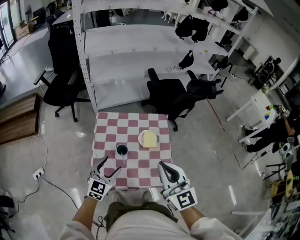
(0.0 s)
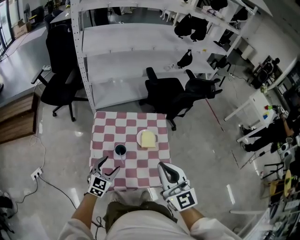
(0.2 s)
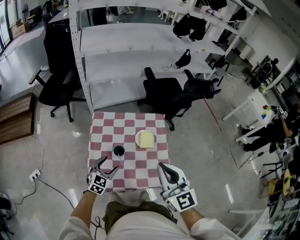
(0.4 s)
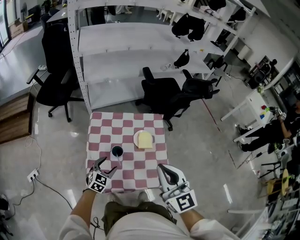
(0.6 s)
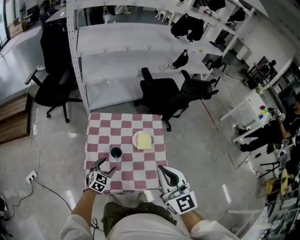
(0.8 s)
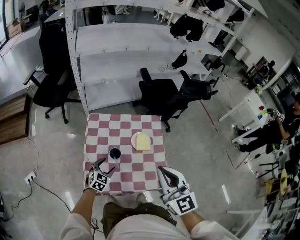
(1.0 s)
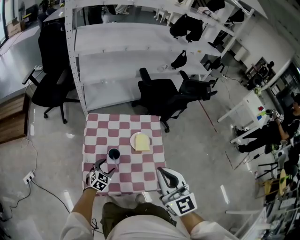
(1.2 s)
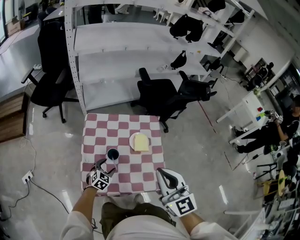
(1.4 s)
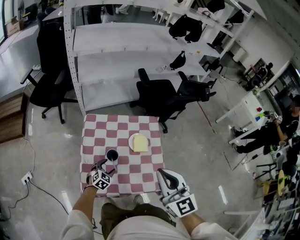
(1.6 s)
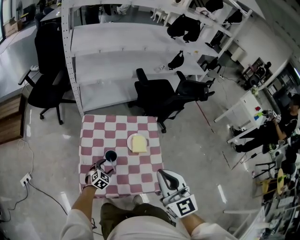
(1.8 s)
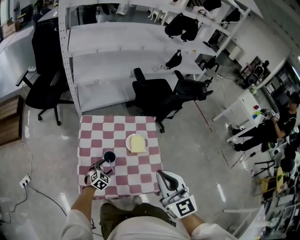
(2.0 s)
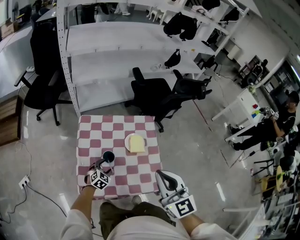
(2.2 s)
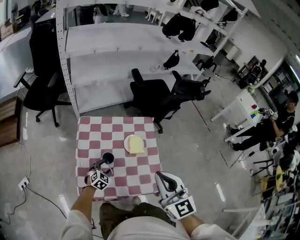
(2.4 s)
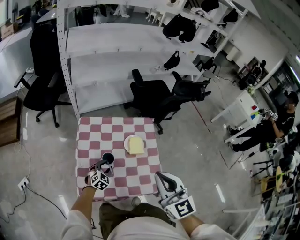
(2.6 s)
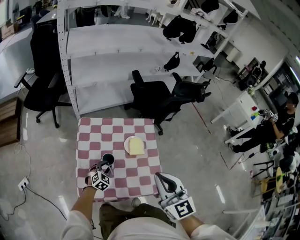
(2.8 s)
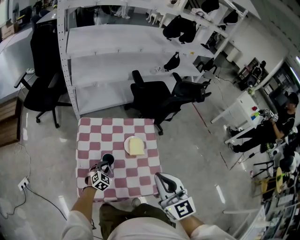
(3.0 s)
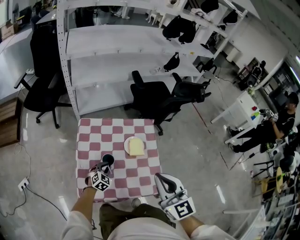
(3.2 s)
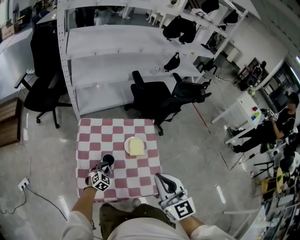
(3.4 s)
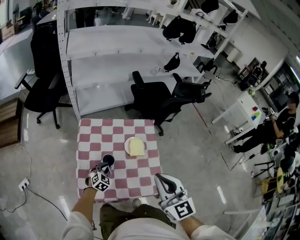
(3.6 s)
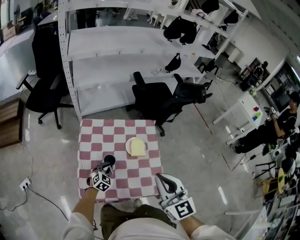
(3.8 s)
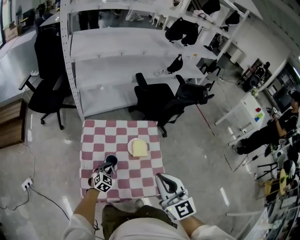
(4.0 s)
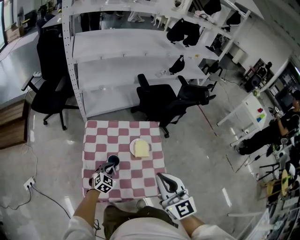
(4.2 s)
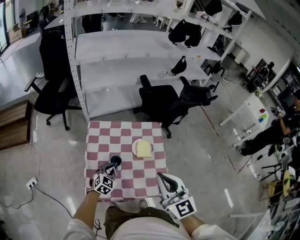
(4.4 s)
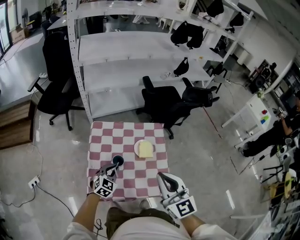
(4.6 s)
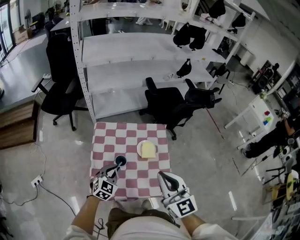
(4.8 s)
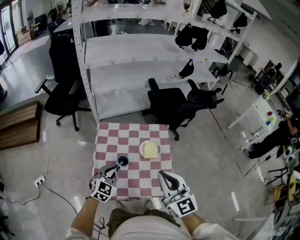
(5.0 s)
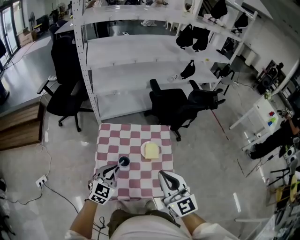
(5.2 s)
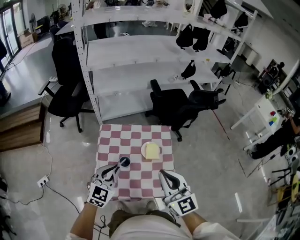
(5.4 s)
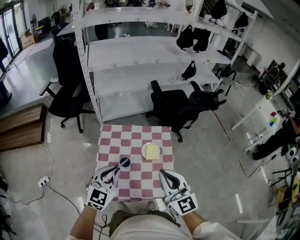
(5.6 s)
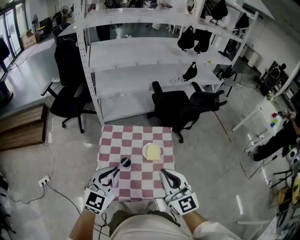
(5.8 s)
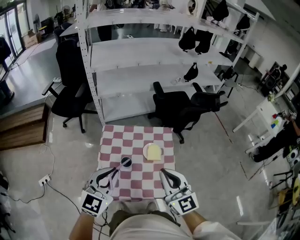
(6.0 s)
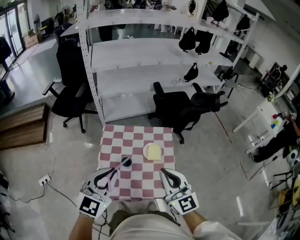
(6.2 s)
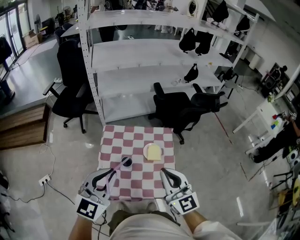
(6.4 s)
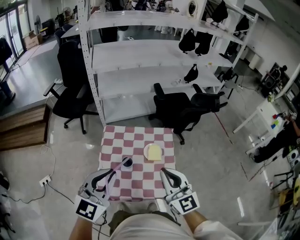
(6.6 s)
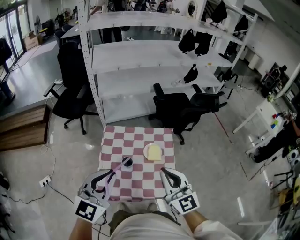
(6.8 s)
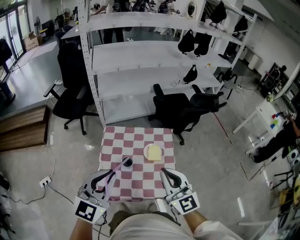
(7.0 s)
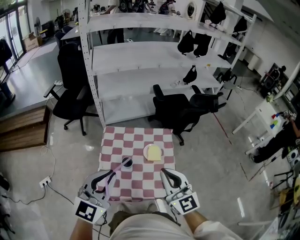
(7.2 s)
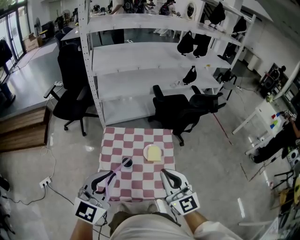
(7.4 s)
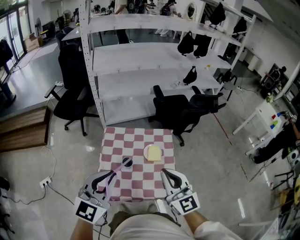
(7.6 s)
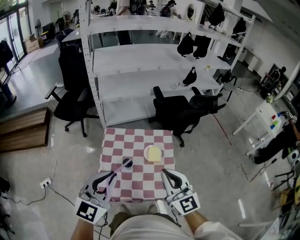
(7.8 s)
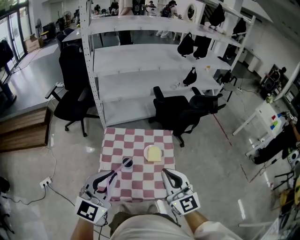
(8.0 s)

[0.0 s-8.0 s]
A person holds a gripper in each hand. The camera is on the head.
0.0 to 1.6 s: The left gripper goes about 20 cm downward, and swivels approximately 30 degrees.
1.6 to 3.2 s: The left gripper closes its fingers.
3.2 to 4.8 s: The left gripper shifts roughly 20 cm upward.
4.8 to 6.4 s: The left gripper travels upward by about 25 cm, and changes its angle by approximately 20 degrees.
6.4 to 8.0 s: The grippers stay close to where they were, moving slightly.

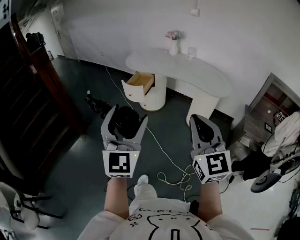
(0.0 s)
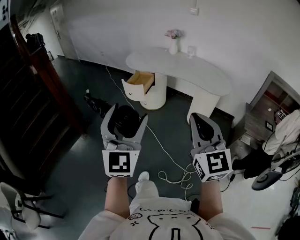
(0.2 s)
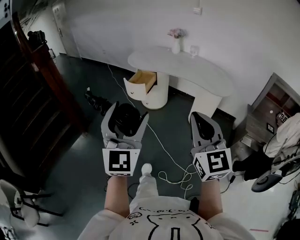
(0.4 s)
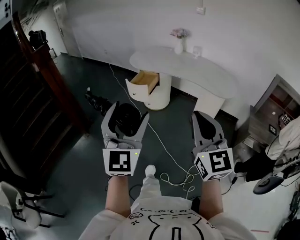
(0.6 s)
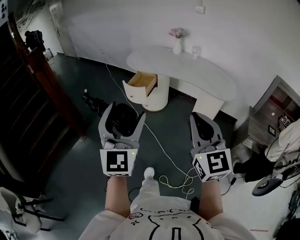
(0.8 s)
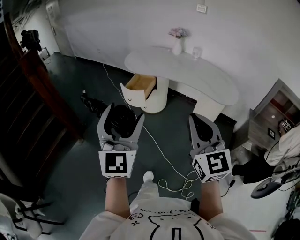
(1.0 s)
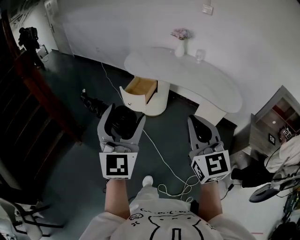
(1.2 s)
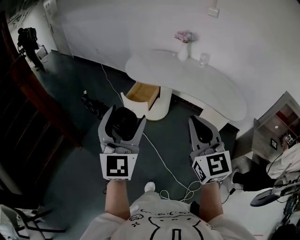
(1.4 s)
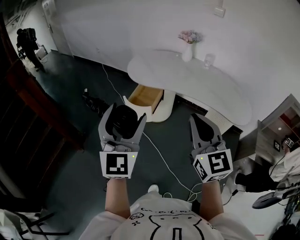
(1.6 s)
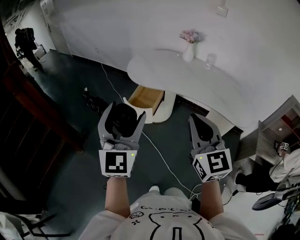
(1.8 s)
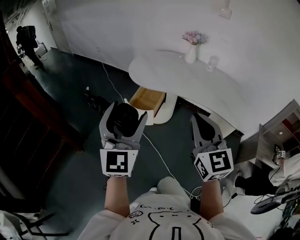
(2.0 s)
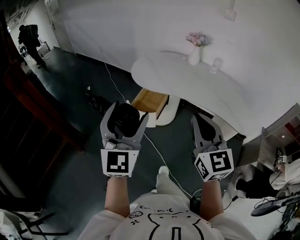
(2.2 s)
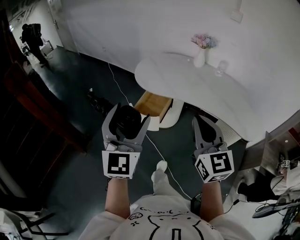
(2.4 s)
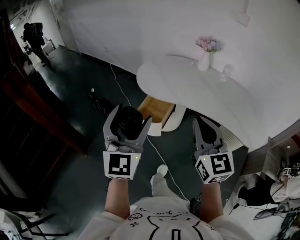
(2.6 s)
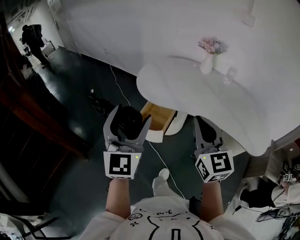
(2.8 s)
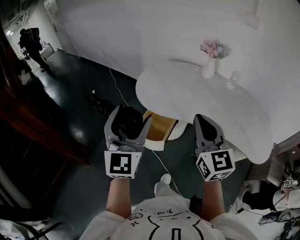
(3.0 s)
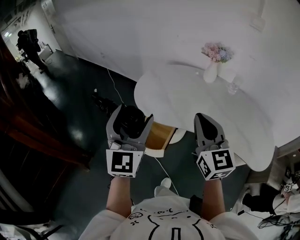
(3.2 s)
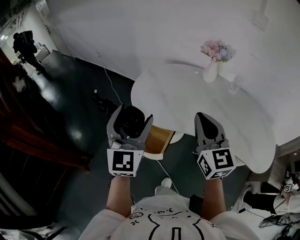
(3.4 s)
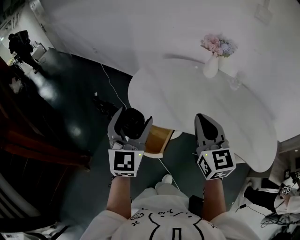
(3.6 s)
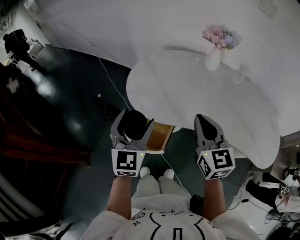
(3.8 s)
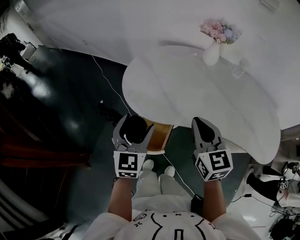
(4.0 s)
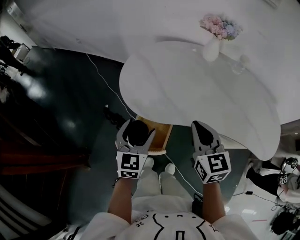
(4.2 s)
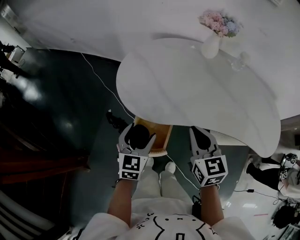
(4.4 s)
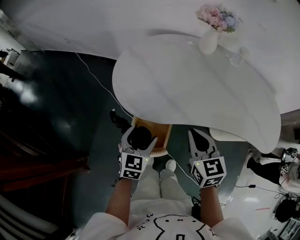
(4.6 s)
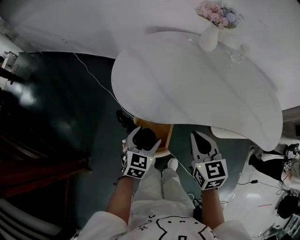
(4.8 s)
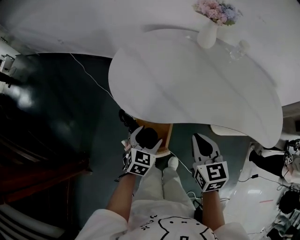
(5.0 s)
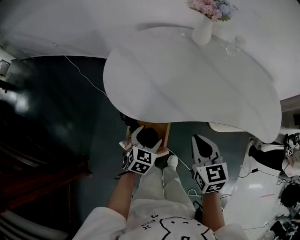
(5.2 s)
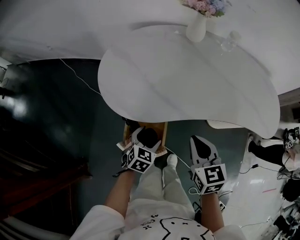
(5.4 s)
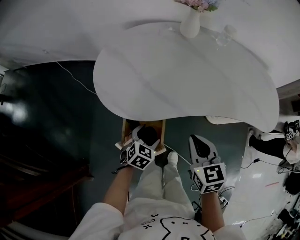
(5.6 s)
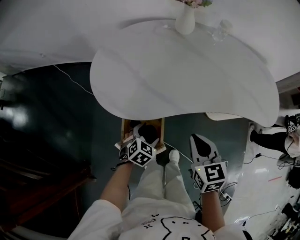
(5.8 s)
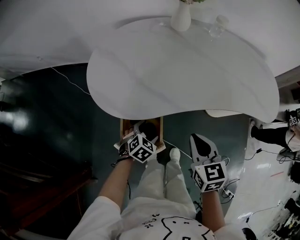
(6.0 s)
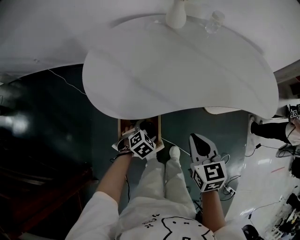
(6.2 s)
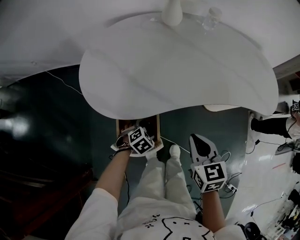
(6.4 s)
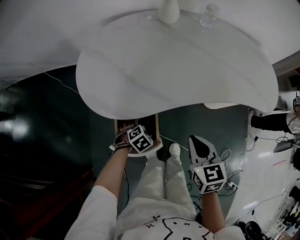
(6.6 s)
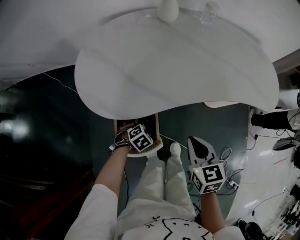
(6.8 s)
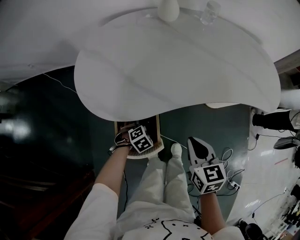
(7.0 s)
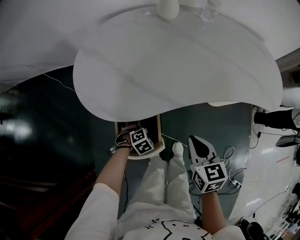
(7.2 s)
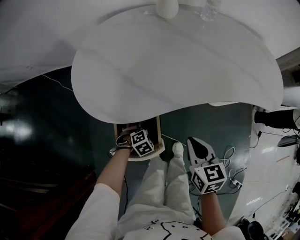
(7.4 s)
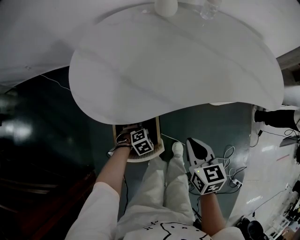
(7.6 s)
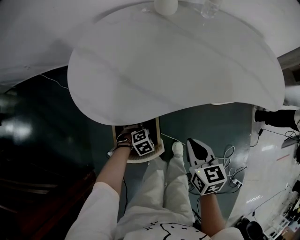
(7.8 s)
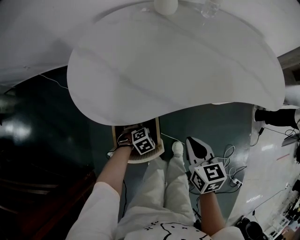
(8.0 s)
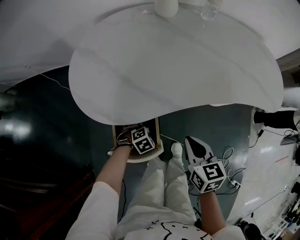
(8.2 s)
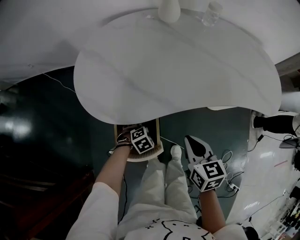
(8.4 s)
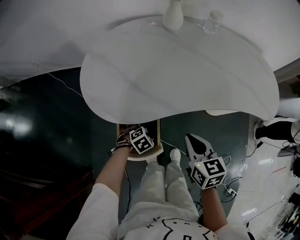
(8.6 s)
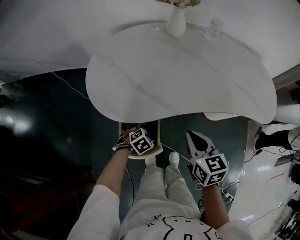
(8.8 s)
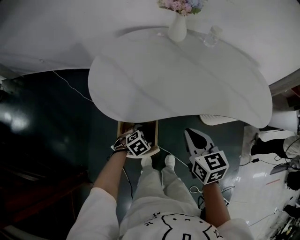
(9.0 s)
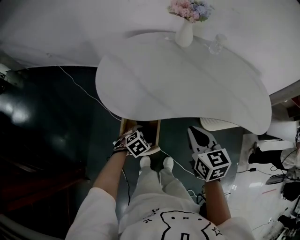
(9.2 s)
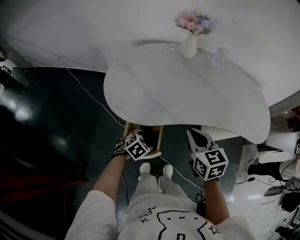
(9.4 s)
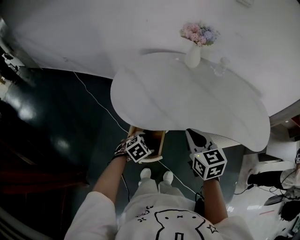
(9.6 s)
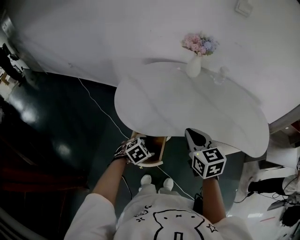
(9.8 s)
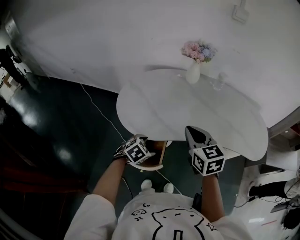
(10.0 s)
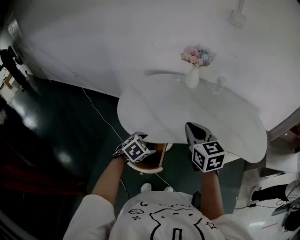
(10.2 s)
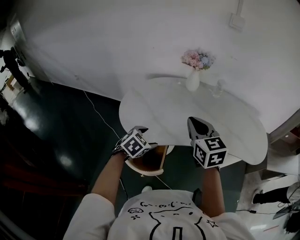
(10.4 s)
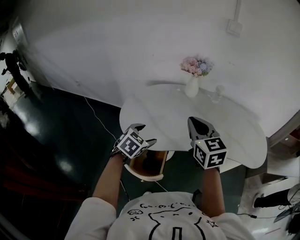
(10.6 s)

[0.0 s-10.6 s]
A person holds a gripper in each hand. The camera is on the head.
0.0 to 1.6 s: Both grippers move forward, about 35 cm.
1.6 to 3.0 s: Both grippers move forward, about 30 cm.
3.0 to 4.6 s: Both grippers travel together downward and forward, some 30 cm. The left gripper points its fingers roughly 40 degrees further downward. The right gripper turns by roughly 30 degrees.
4.6 to 6.0 s: The left gripper heads downward, covering some 15 cm, and turns by about 40 degrees, while the right gripper is displaced downward and to the right by approximately 5 cm.
6.0 to 7.6 s: The left gripper travels downward by some 10 cm, and changes its angle by approximately 30 degrees. Meanwhile the right gripper moves downward, approximately 5 cm.
7.6 to 9.0 s: The two grippers go roughly 10 cm upward.
9.0 to 10.6 s: The grippers both shift upward by roughly 25 cm. The right gripper turns by about 30 degrees; the left gripper rotates some 30 degrees.

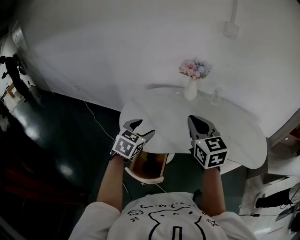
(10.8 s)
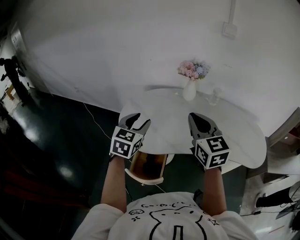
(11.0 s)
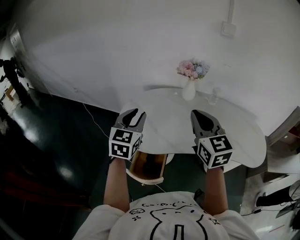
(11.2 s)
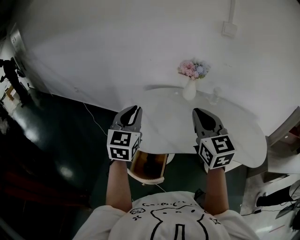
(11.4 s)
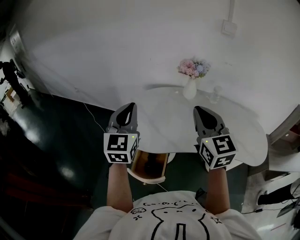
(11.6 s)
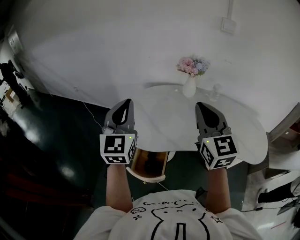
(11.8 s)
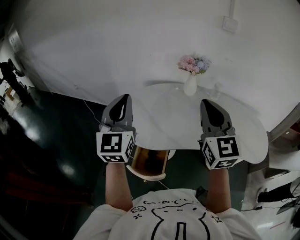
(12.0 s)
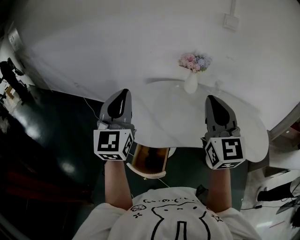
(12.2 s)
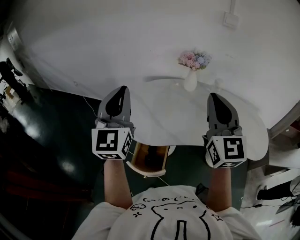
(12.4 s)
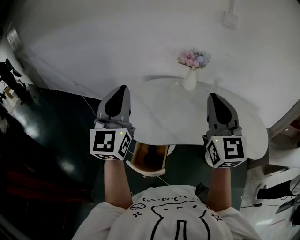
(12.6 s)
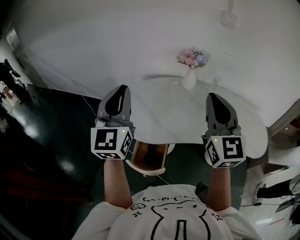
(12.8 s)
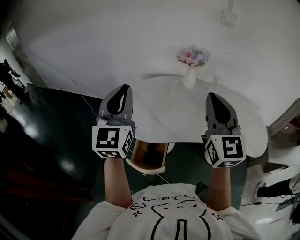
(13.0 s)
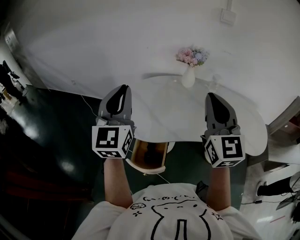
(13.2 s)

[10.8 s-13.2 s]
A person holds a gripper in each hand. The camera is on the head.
10.8 to 12.0 s: The left gripper moves upward, some 20 cm, angles its fingers upward, by roughly 40 degrees, and closes up, while the right gripper moves upward, roughly 10 cm.
12.0 to 13.2 s: There are only small adjustments of the grippers.

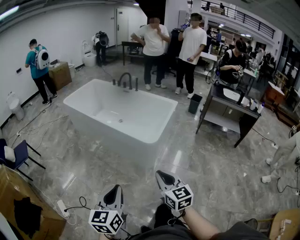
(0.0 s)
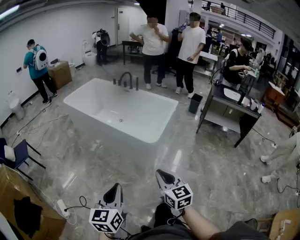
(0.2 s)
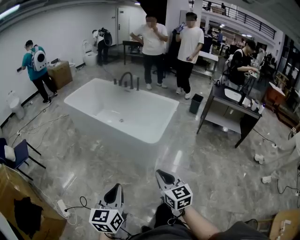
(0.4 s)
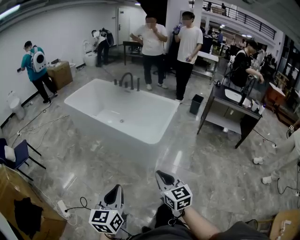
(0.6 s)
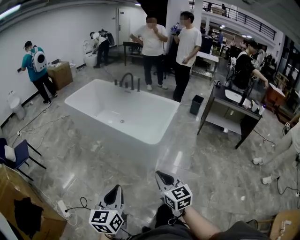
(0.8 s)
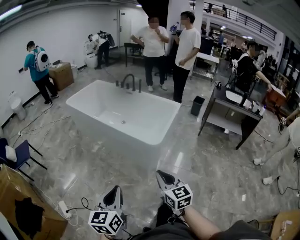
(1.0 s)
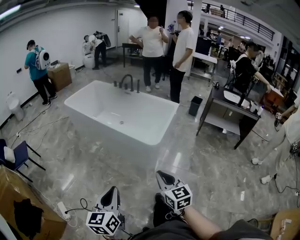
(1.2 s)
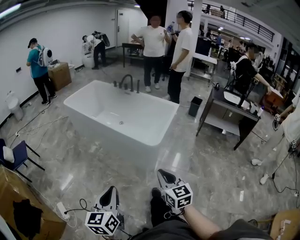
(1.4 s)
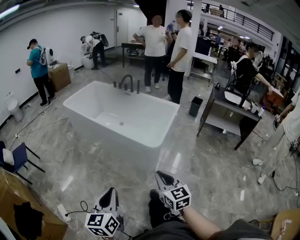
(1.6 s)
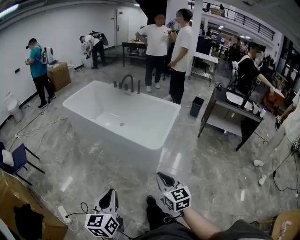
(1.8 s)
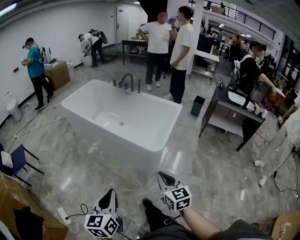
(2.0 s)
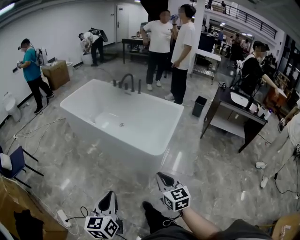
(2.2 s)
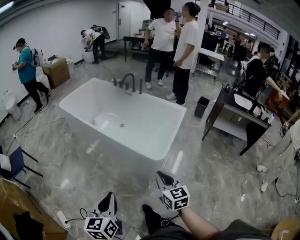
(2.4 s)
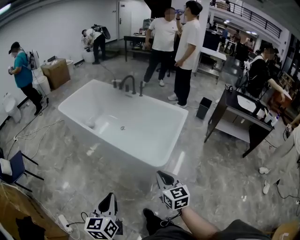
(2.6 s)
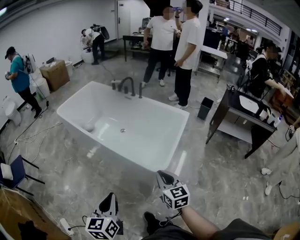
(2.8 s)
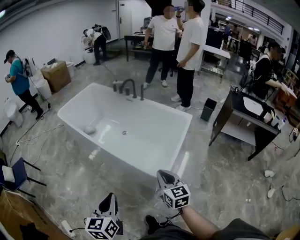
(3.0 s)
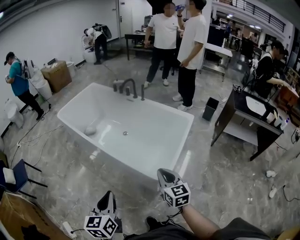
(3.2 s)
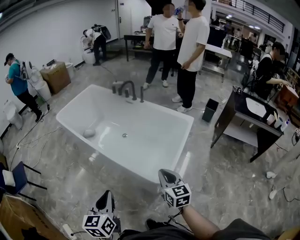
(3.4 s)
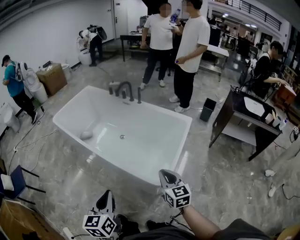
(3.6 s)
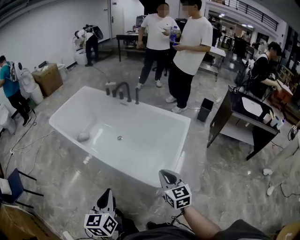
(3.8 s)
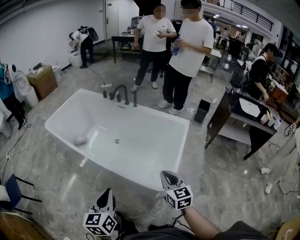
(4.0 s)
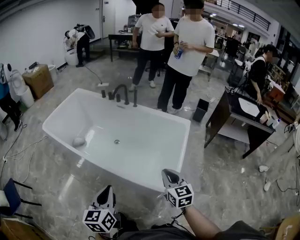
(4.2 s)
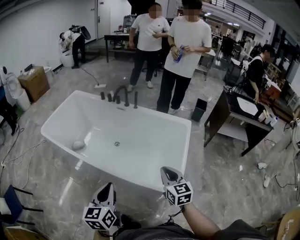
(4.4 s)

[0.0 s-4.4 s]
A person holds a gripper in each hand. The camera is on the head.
0.0 to 1.4 s: The left gripper heads to the left, covering about 5 cm.
1.4 to 3.0 s: The two grippers go roughly 30 cm forward.
3.0 to 4.4 s: The two grippers go about 20 cm forward.
